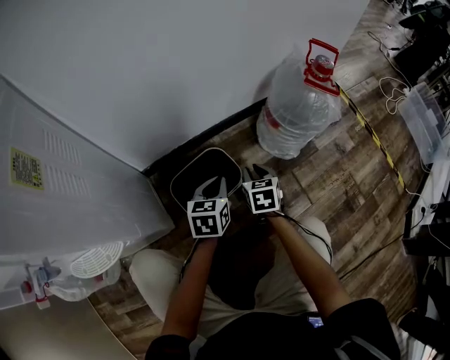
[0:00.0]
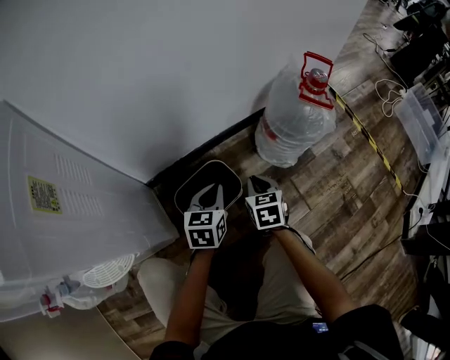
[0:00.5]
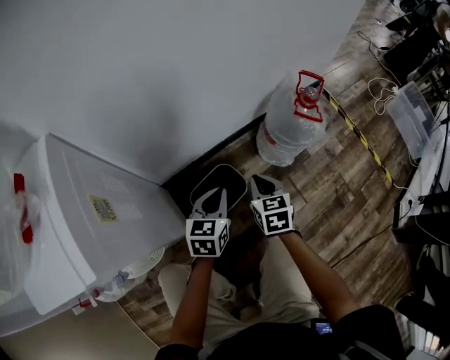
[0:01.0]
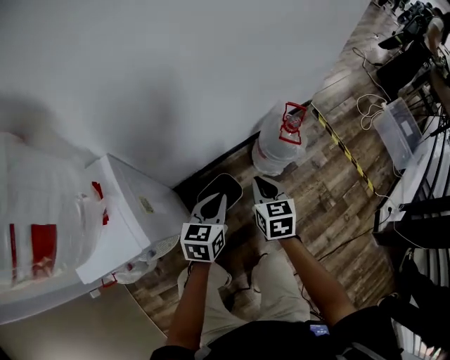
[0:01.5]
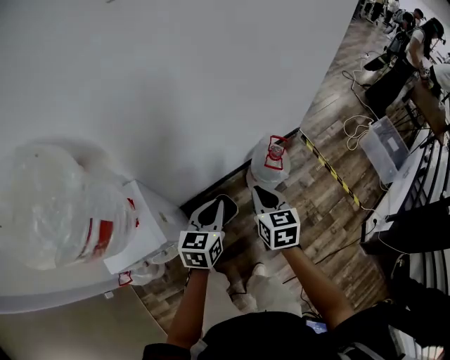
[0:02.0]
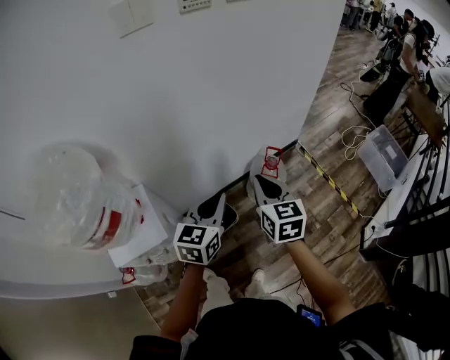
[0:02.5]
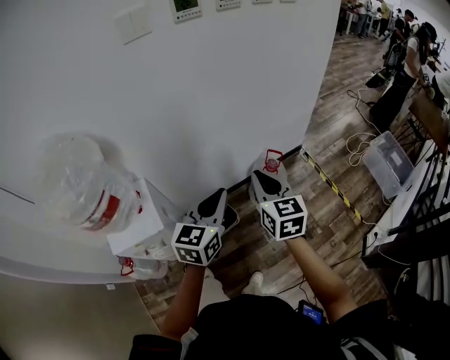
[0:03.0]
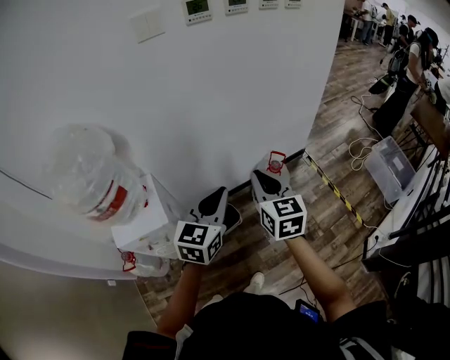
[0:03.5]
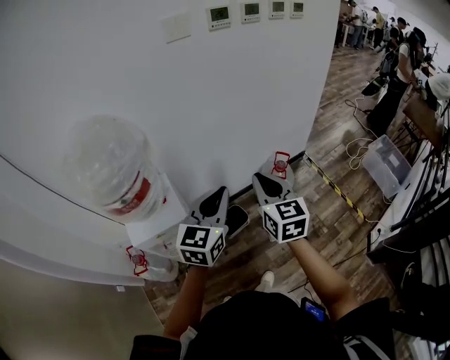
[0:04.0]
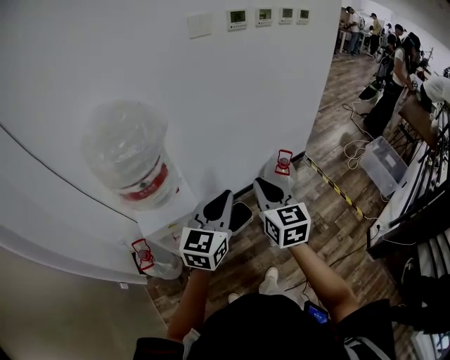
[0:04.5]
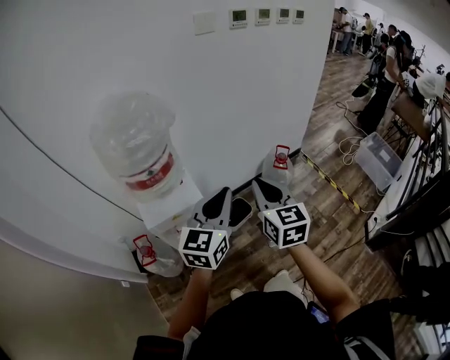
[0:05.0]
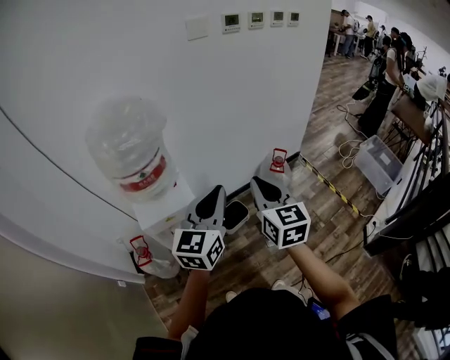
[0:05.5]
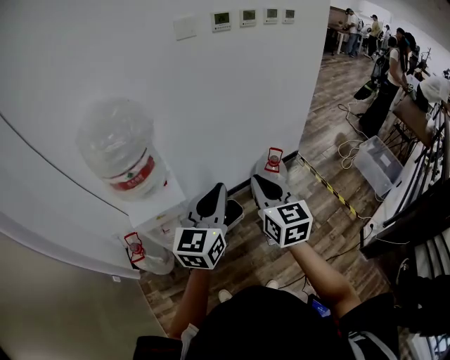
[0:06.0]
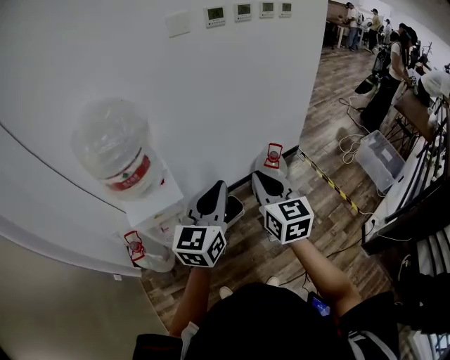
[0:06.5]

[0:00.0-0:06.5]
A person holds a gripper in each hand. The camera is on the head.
0:00.0 to 0:02.0: Both grippers move upward, some 60 cm.
0:02.0 to 0:04.5: Both grippers move upward and backward, about 30 cm. The left gripper swivels about 20 degrees. The right gripper rotates roughly 20 degrees.
0:04.5 to 0:06.5: The two grippers go about 5 cm to the right.

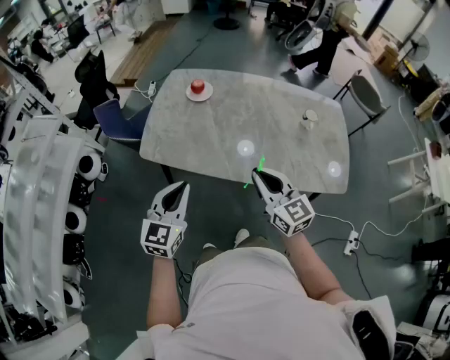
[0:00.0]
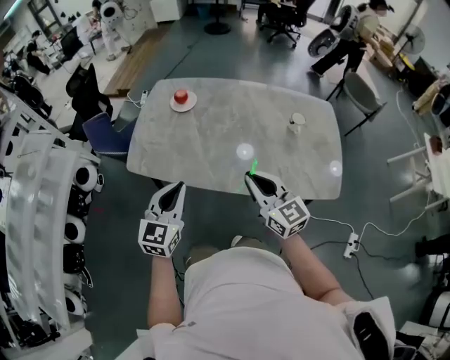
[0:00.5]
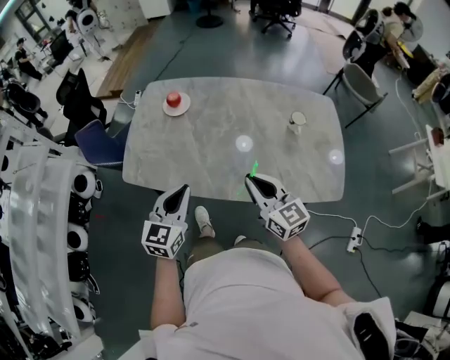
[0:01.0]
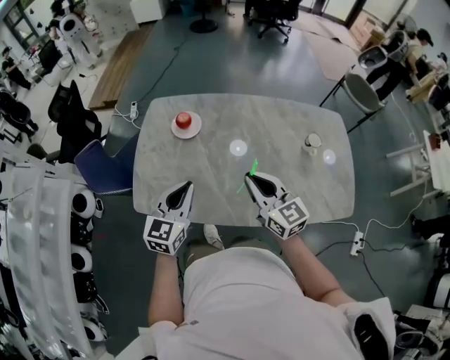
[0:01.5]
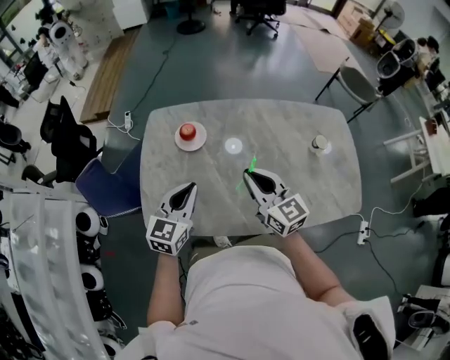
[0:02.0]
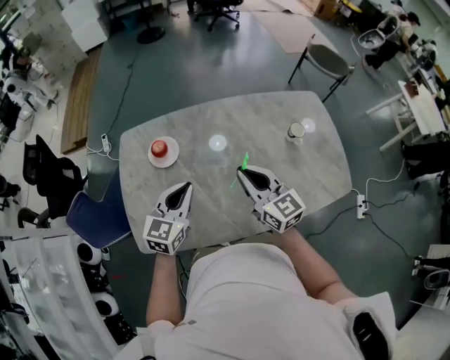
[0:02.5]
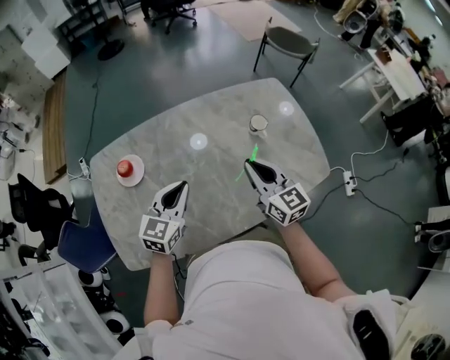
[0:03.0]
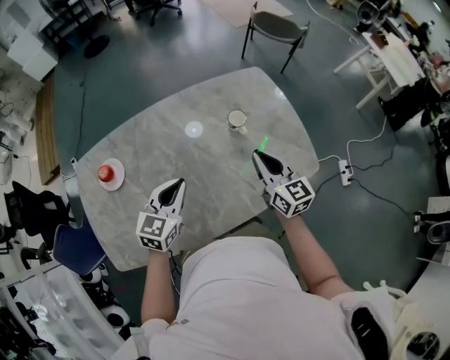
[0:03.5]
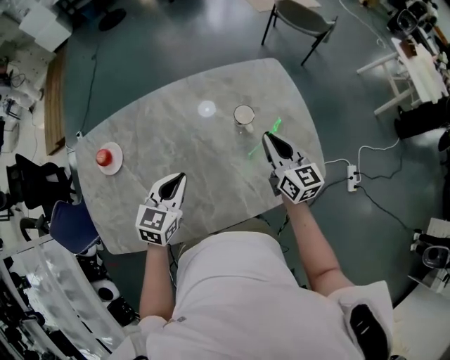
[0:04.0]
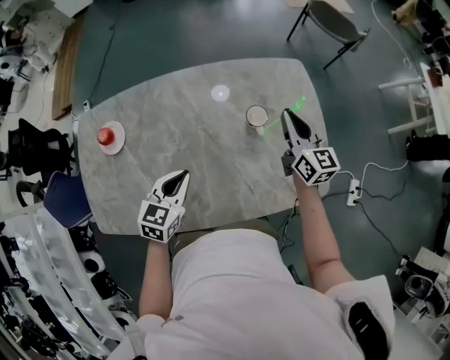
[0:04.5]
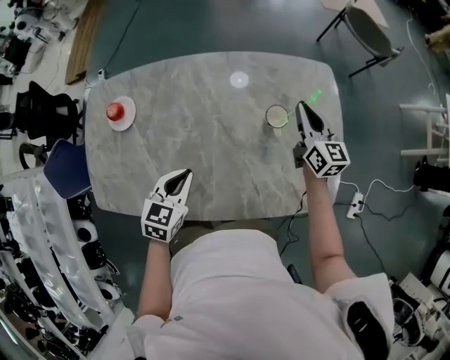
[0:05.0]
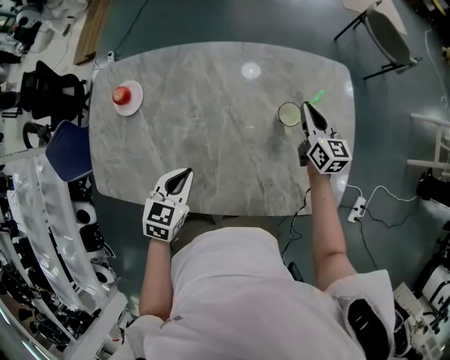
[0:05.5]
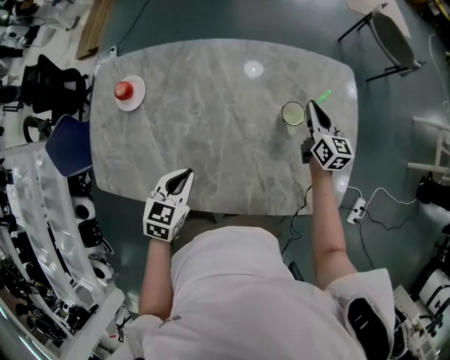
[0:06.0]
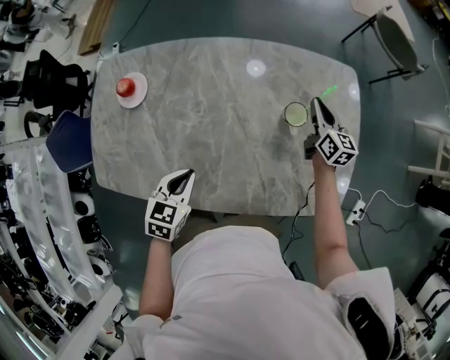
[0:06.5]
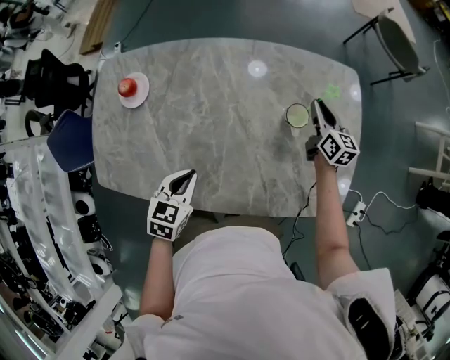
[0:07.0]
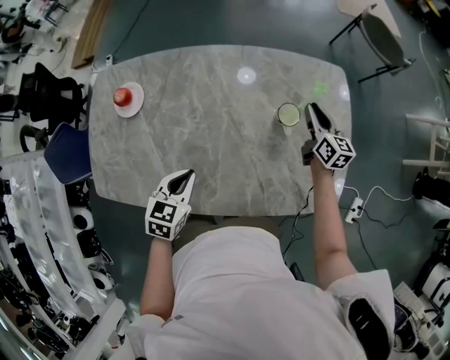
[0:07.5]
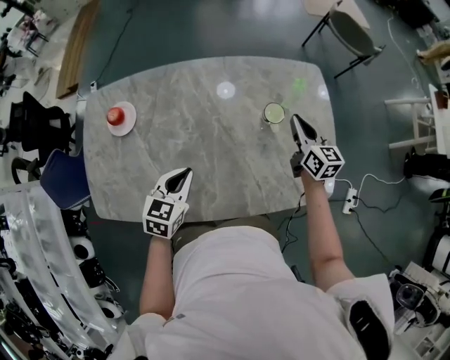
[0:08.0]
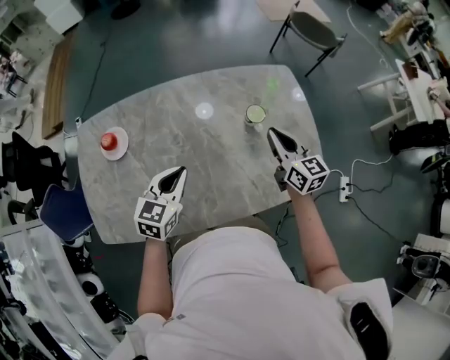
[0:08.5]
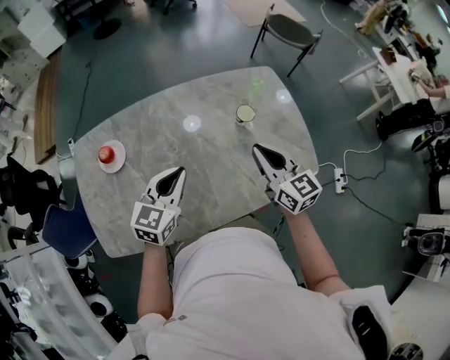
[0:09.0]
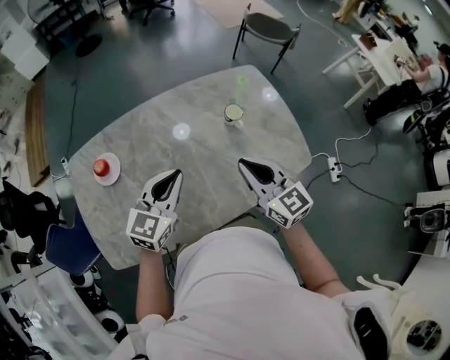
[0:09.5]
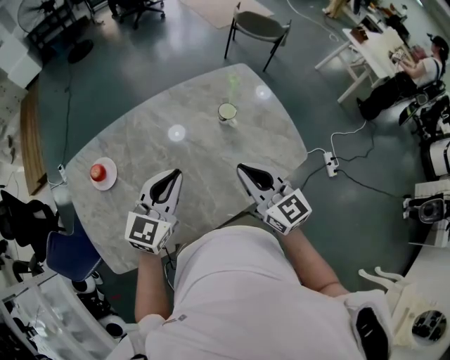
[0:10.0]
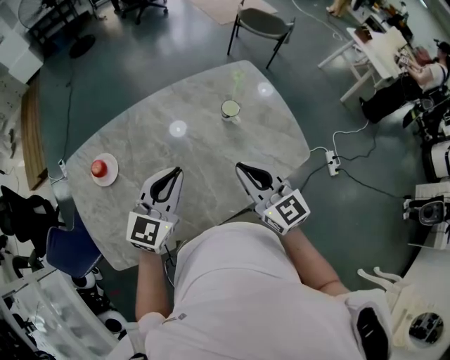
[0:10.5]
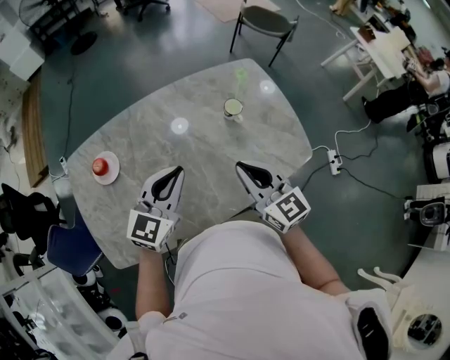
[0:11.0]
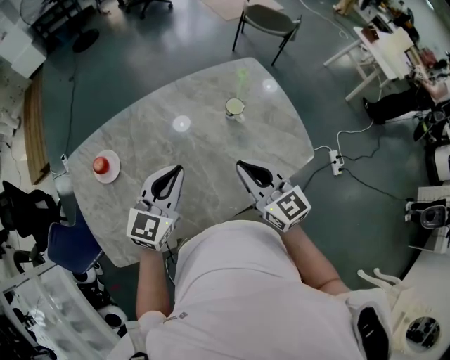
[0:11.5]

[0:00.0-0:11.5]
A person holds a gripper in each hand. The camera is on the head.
0:00.0 to 0:02.0: Both grippers move forward, approximately 30 cm.
0:02.0 to 0:04.0: The left gripper changes place by about 35 cm, and rotates some 20 degrees; the right gripper ends up some 40 cm from where it was, and changes its angle by approximately 30 degrees.
0:04.0 to 0:06.0: The left gripper heads downward, covering about 5 cm, and swivels roughly 30 degrees, while the right gripper shifts about 20 cm forward and downward.
0:06.0 to 0:07.5: The grippers stay close to where they were, moving slightly.
0:07.5 to 0:09.5: The right gripper moves backward, upward and to the left, about 40 cm, and turns by roughly 20 degrees; the left gripper shifts approximately 15 cm upward, and turns by about 40 degrees.
0:09.5 to 0:11.5: The grippers stay close to where they were, moving slightly.

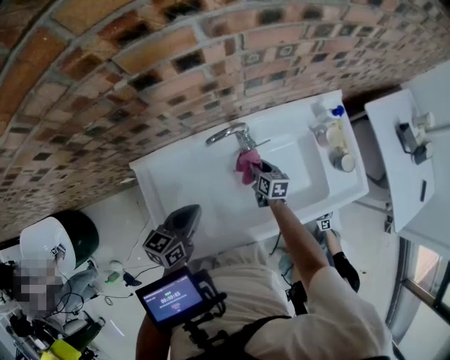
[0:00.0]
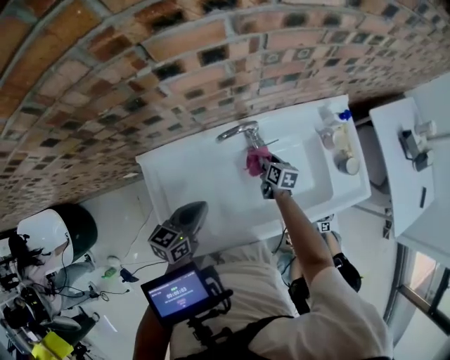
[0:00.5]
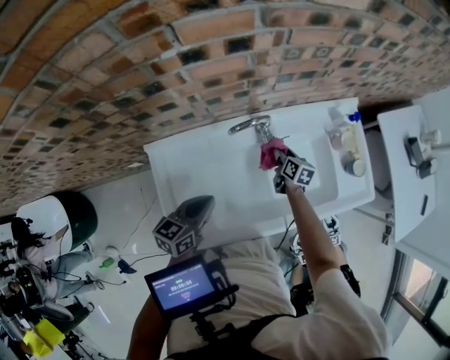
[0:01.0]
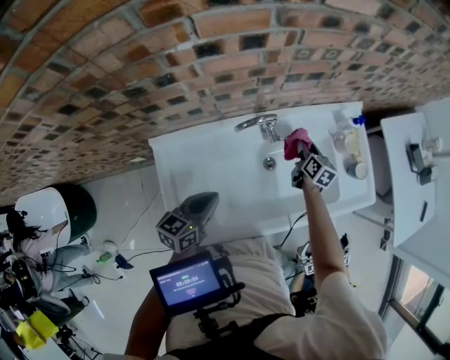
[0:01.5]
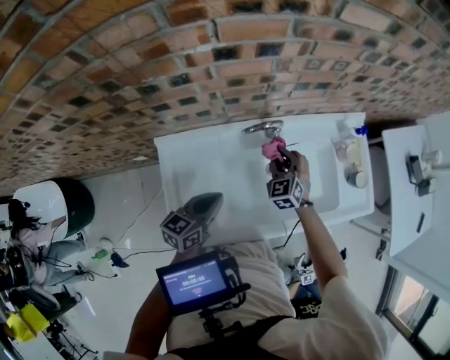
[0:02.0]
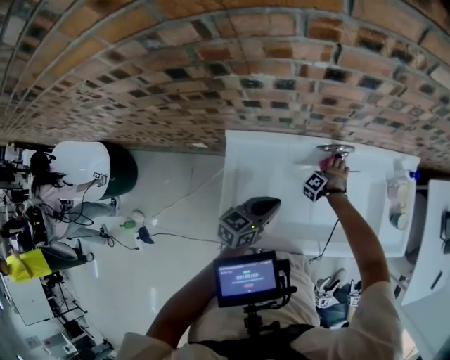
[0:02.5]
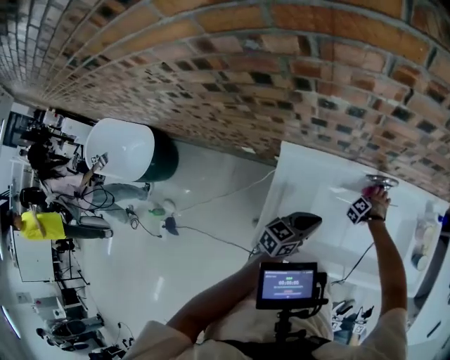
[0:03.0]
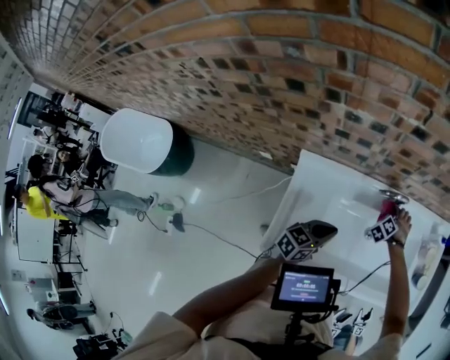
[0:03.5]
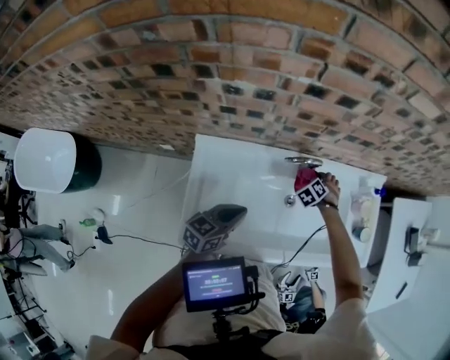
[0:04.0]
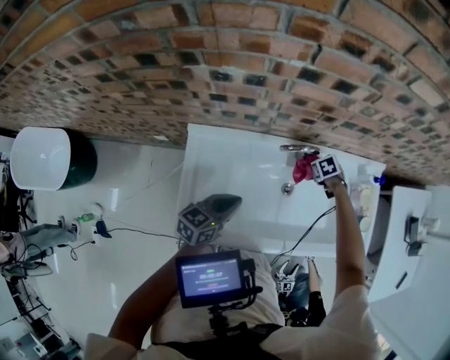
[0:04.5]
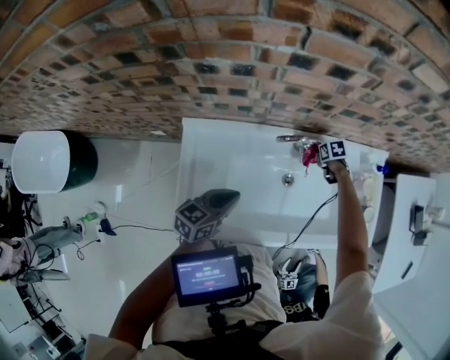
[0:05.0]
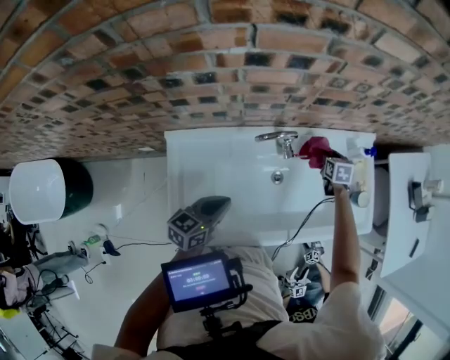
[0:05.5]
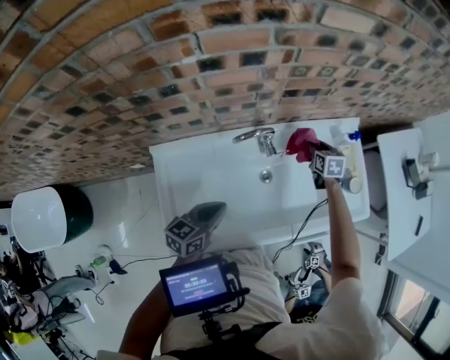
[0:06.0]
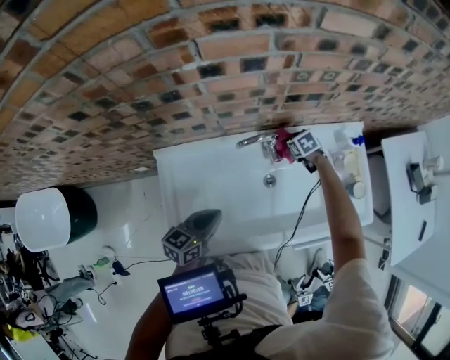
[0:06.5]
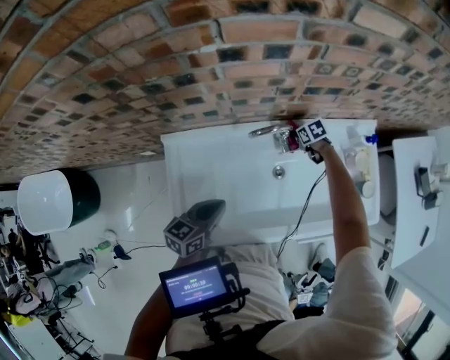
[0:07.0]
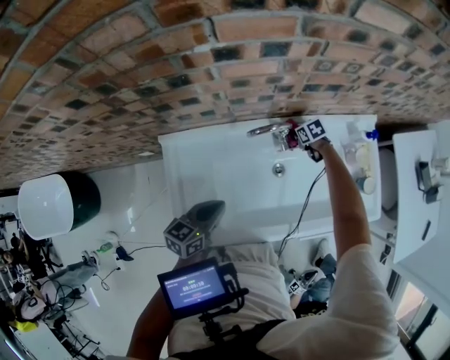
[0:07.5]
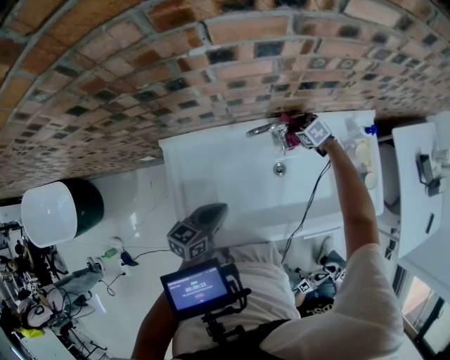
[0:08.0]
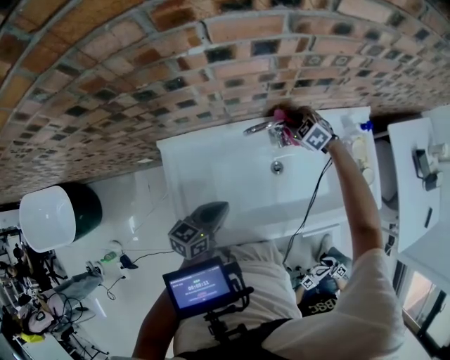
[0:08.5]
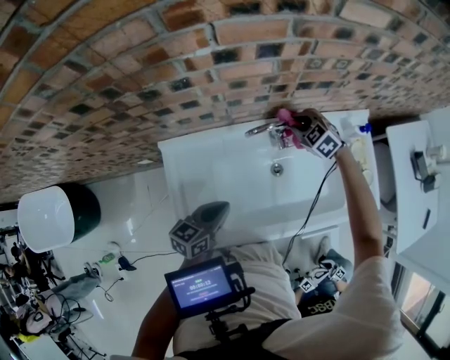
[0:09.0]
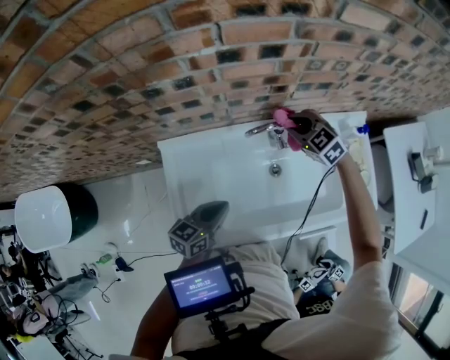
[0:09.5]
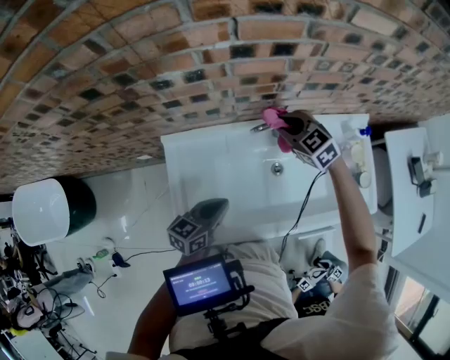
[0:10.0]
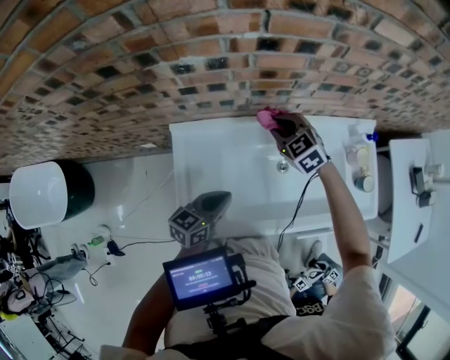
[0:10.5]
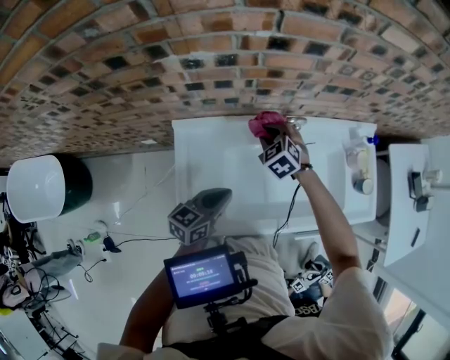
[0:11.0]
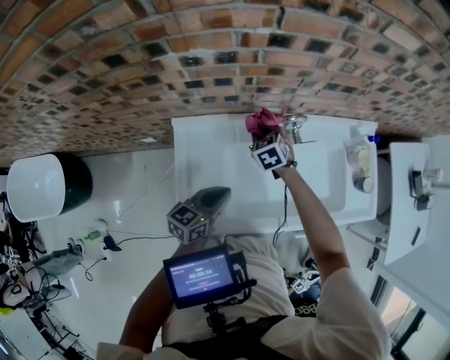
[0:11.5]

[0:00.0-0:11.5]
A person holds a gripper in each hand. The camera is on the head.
0:00.0 to 0:02.0: The right gripper goes about 15 cm upward, and rolls counterclockwise, seen from behind, by approximately 60 degrees.
0:02.0 to 0:04.0: The right gripper moves downward and forward, roughly 10 cm, and turns by about 40 degrees.
0:04.0 to 0:06.0: The right gripper changes place by some 15 cm, and rotates around the line of its fingers by about 60 degrees, clockwise from behind. Meanwhile the left gripper changes place by about 5 cm.
0:06.0 to 0:07.5: The right gripper moves downward, about 15 cm, and rotates roughly 40 degrees.
0:07.5 to 0:09.5: The right gripper goes roughly 25 cm upward, and changes its angle by roughly 40 degrees.
0:09.5 to 0:11.5: The right gripper is displaced to the left and downward by about 20 cm, and swivels about 20 degrees.
